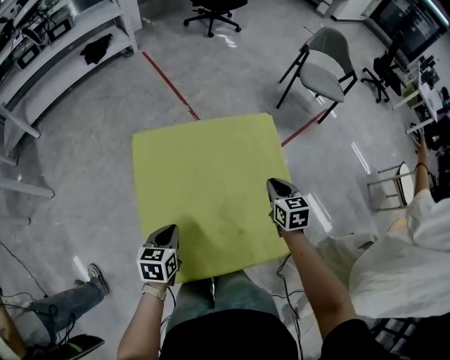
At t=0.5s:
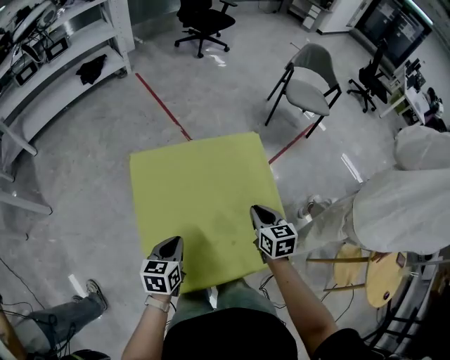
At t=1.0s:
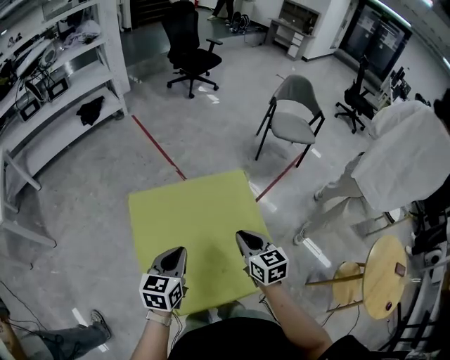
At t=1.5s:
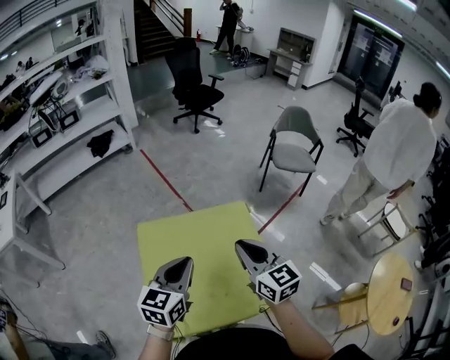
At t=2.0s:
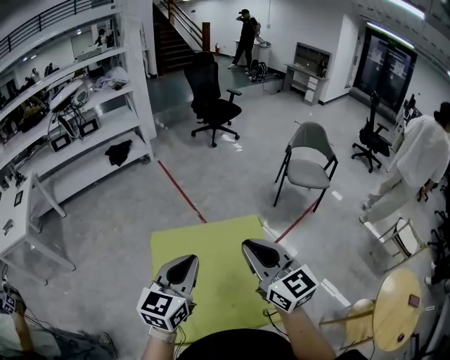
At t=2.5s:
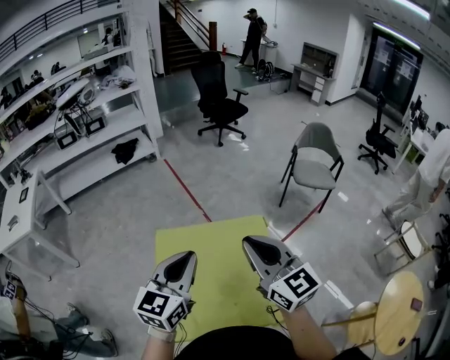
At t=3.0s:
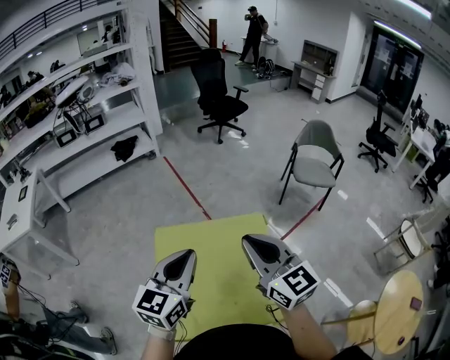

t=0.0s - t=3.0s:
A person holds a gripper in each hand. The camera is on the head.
t=0.0s - t=1.5s: The left gripper heads upward and to the right, covering approximately 30 cm, and turns by some 30 degrees. Meanwhile the right gripper goes about 30 cm upward, and turns by some 30 degrees.
t=1.5s - t=3.0s: Both grippers move upward, roughly 10 cm.

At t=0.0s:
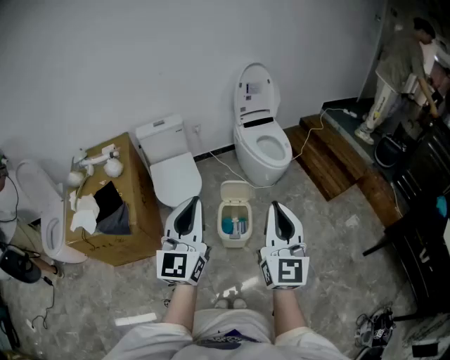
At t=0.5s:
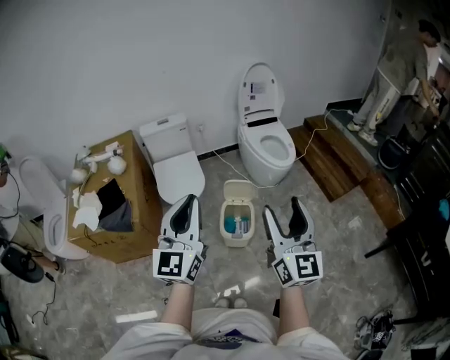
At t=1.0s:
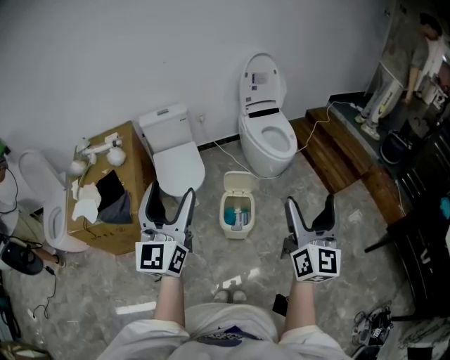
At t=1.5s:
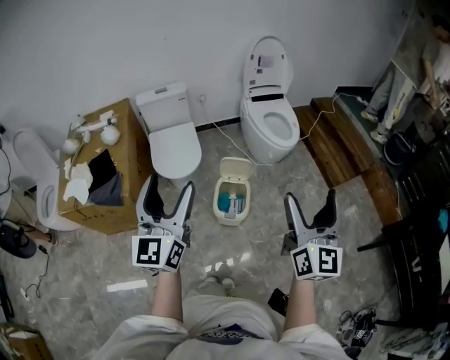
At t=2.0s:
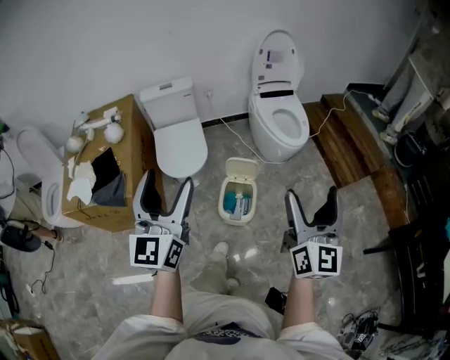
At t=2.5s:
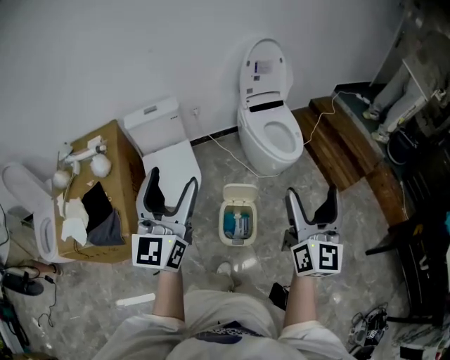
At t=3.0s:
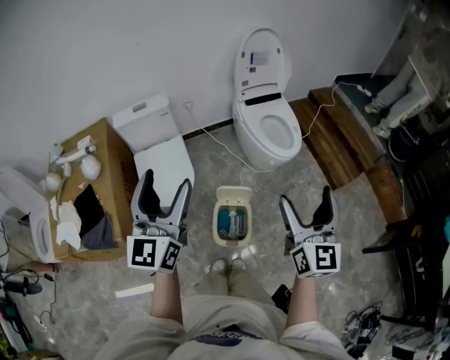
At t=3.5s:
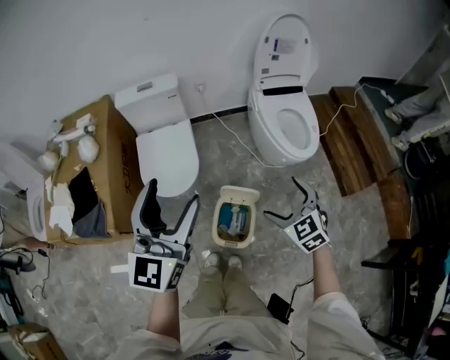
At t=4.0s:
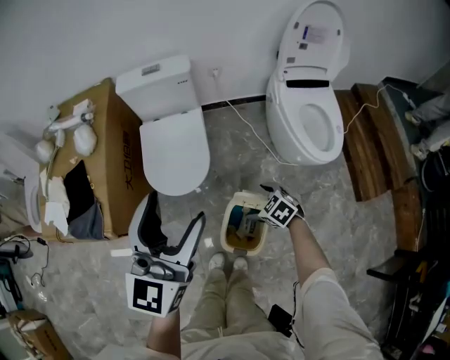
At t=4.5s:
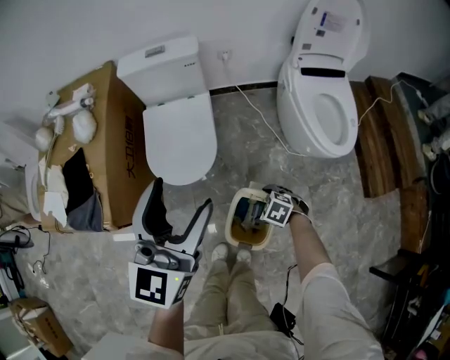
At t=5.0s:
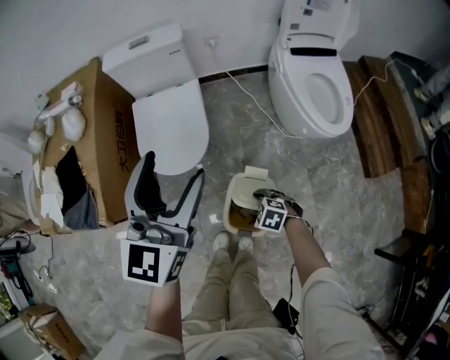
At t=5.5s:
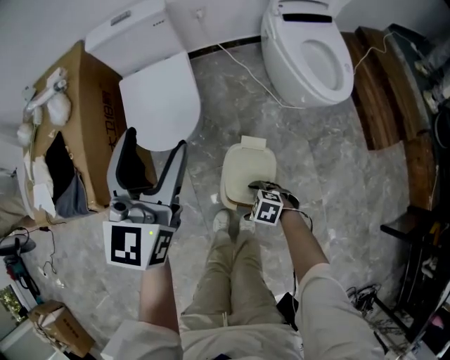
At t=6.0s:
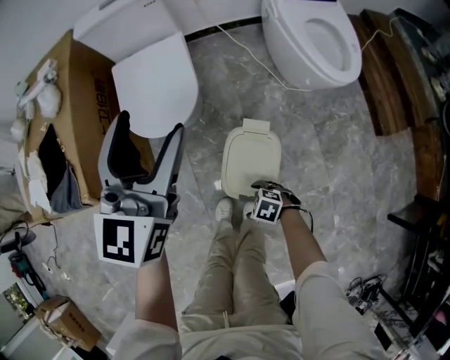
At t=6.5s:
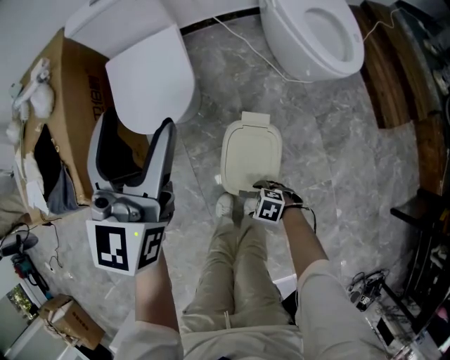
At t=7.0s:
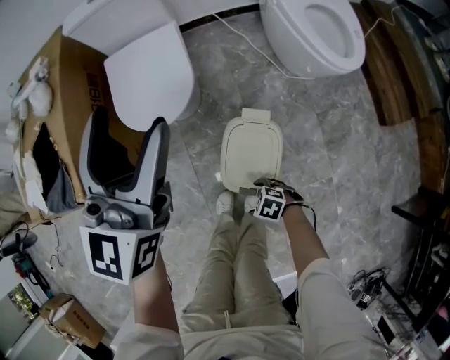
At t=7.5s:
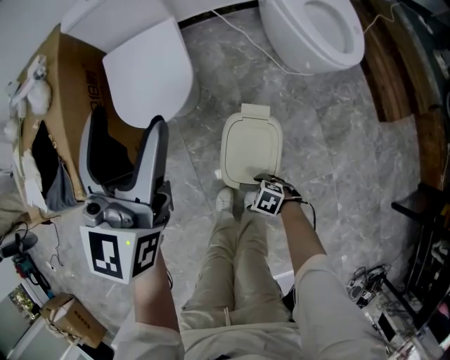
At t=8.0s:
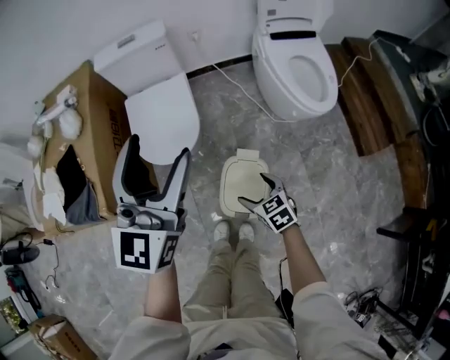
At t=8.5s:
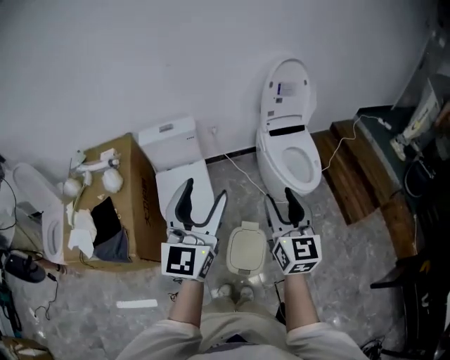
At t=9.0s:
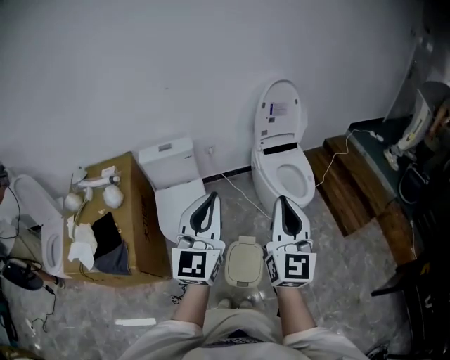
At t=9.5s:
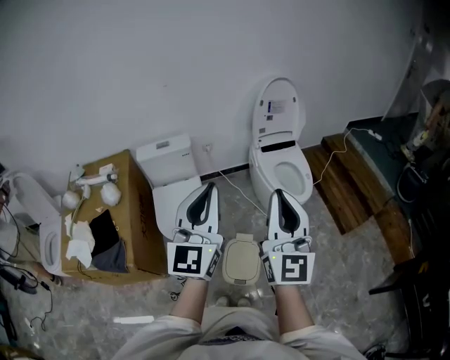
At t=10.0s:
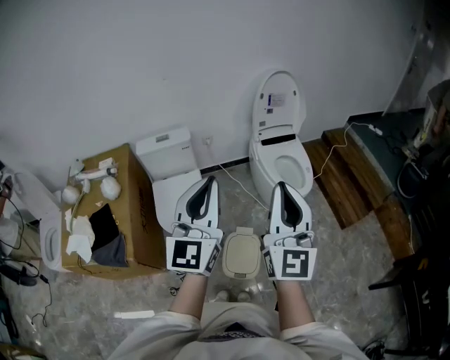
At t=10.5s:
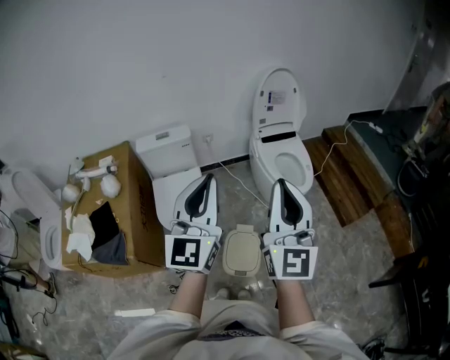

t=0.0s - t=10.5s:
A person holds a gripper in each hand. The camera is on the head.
t=0.0s - t=2.0s: The right gripper moves forward and to the right, approximately 10 cm, and opens; the left gripper travels forward by roughly 5 cm, and opens up.
t=2.0s - t=4.0s: The right gripper is displaced downward by roughly 50 cm, and angles its fingers downward, by some 70 degrees, while the left gripper ends up roughly 30 cm from where it was.
t=4.0s - t=6.5s: The right gripper ends up about 35 cm from where it was, and rotates some 20 degrees, while the left gripper goes approximately 15 cm downward.
t=6.5s - t=8.5s: The right gripper shifts about 70 cm upward, points its fingers approximately 60 degrees further upward, and closes up, while the left gripper travels upward by roughly 25 cm.
t=8.5s - t=10.5s: The right gripper shifts approximately 15 cm upward and backward, swivels approximately 20 degrees, and closes; the left gripper changes place by roughly 5 cm, and closes up.

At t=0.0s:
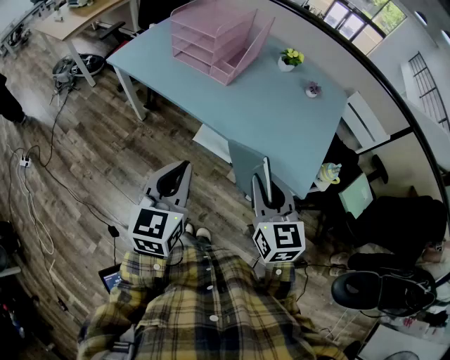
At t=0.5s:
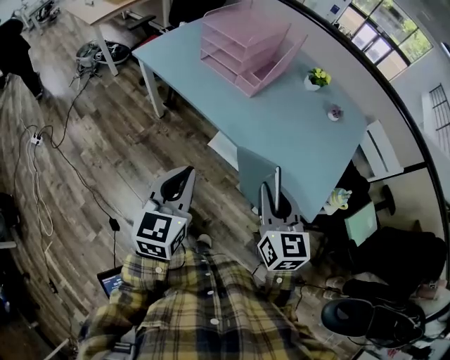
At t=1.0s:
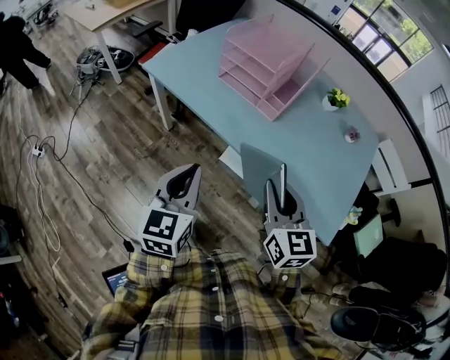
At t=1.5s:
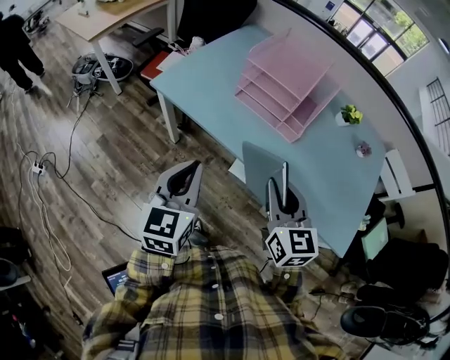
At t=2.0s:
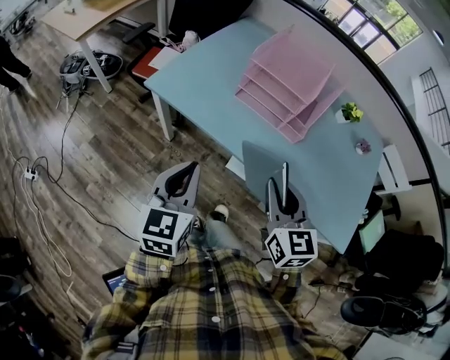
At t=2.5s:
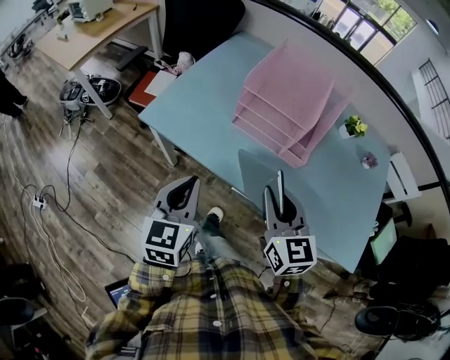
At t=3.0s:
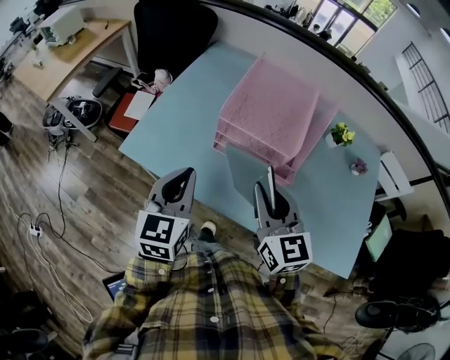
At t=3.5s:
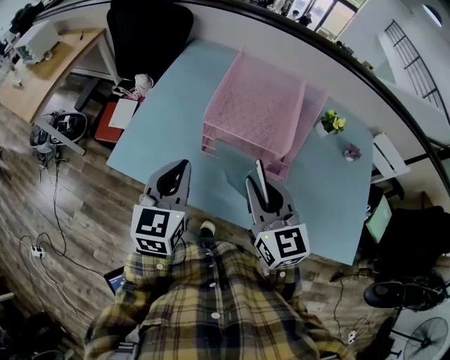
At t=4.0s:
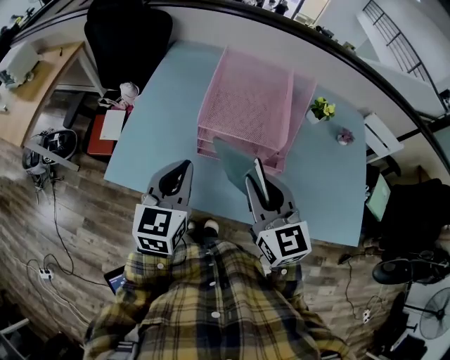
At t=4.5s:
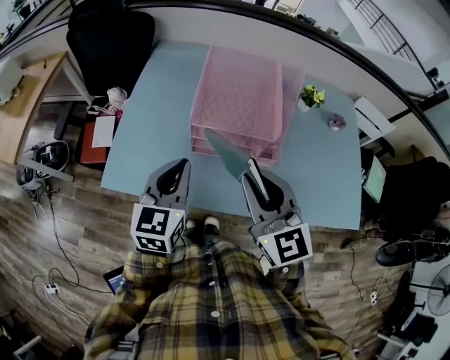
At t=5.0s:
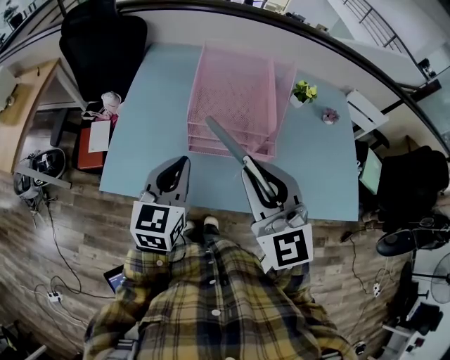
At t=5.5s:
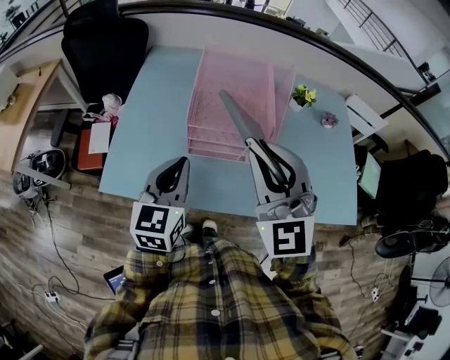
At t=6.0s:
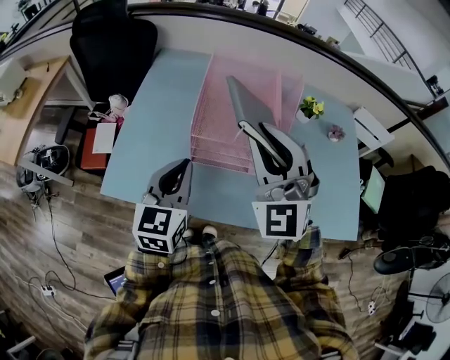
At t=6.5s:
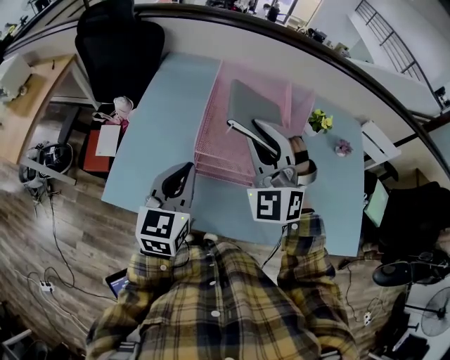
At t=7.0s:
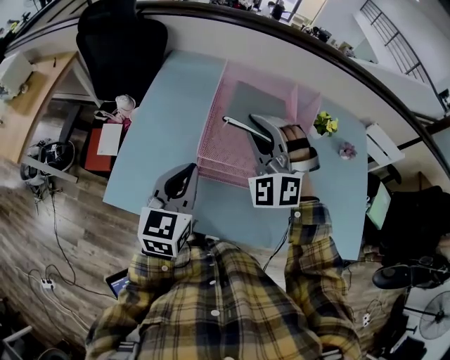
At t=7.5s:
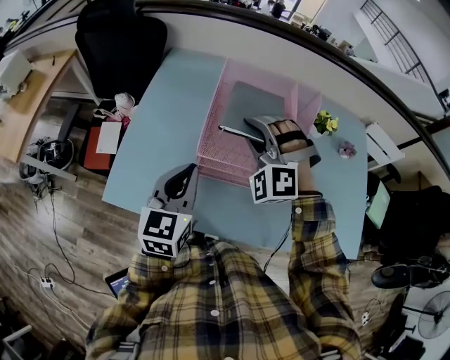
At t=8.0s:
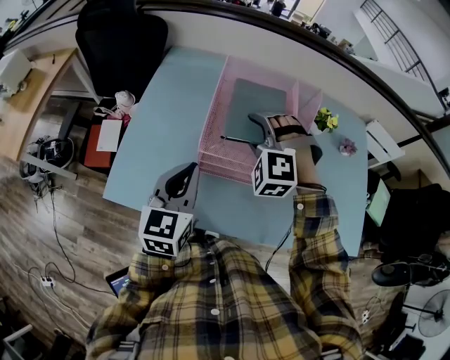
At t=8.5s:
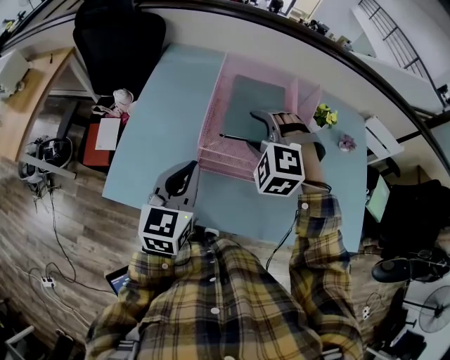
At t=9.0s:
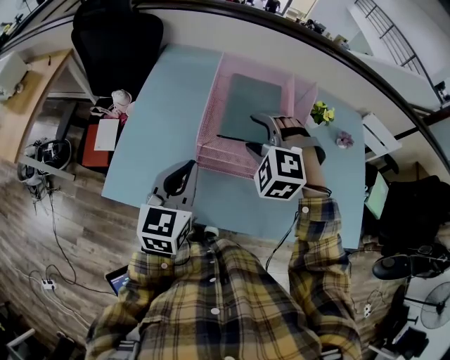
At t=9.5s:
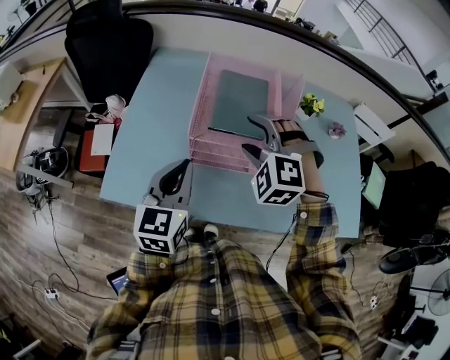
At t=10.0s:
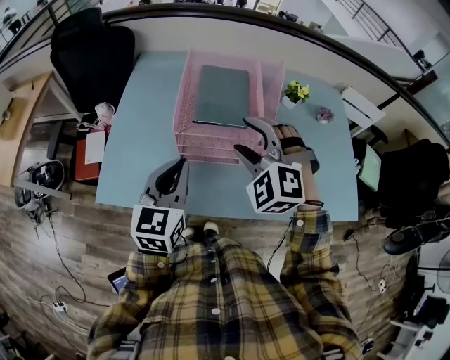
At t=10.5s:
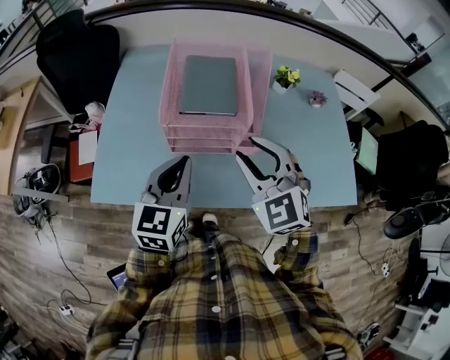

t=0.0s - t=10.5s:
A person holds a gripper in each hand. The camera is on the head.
t=0.0s - t=2.0s: Both grippers travel together to the left and forward, some 35 cm.
t=2.0s - t=4.0s: The grippers both shift forward by about 25 cm.
t=4.0s - t=6.5s: The right gripper travels forward and upward by about 15 cm, and rolls counterclockwise, seen from behind, by approximately 60 degrees. The left gripper heads forward, covering some 5 cm.
t=6.5s - t=8.5s: The right gripper goes approximately 10 cm downward, tips its fingers downward by approximately 40 degrees, and opens up.
t=8.5s - t=10.5s: The left gripper shifts some 10 cm to the right and backward; the right gripper is displaced backward and to the right by roughly 15 cm, rotates around the line of its fingers by about 40 degrees, clockwise from behind, and closes up.

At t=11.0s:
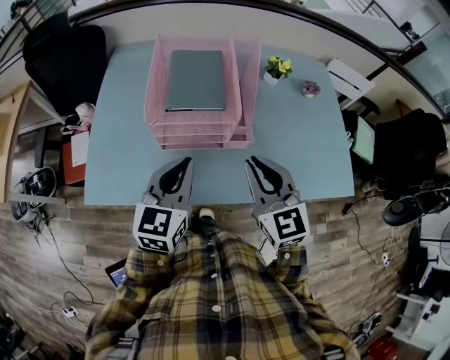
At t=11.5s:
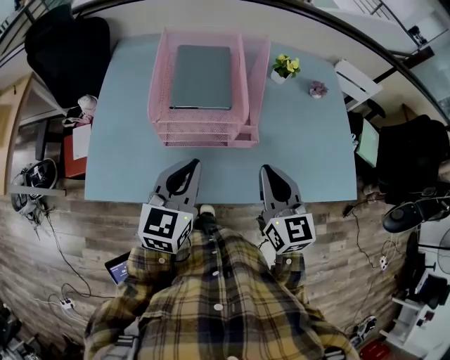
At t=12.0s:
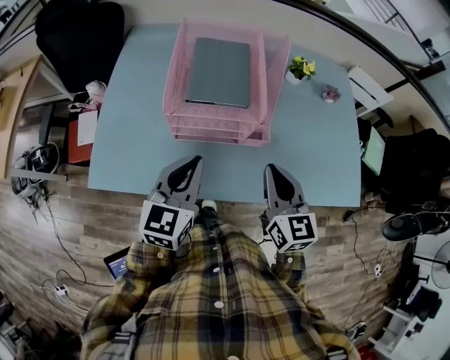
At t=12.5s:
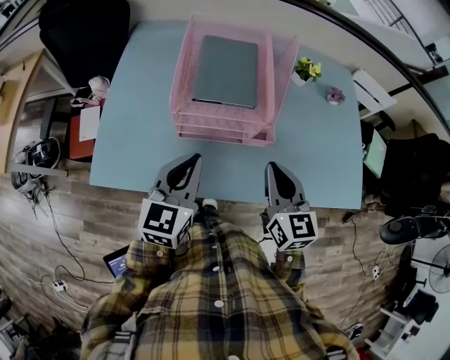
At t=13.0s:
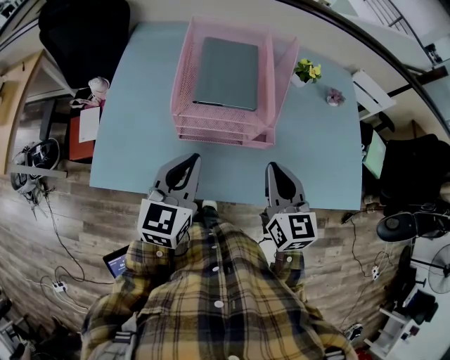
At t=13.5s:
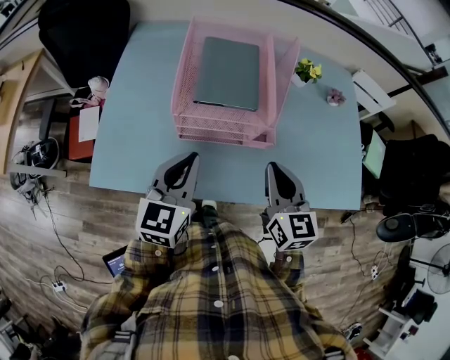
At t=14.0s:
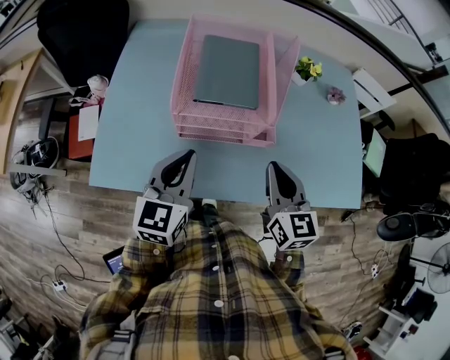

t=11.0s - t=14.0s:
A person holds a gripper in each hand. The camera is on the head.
t=11.0s - t=14.0s: There are only small adjustments of the grippers.
